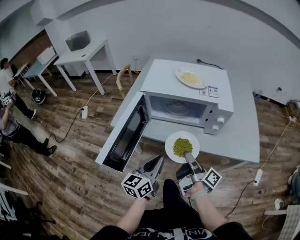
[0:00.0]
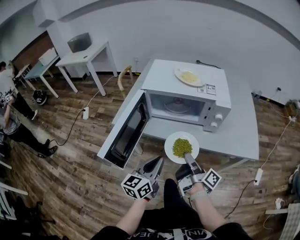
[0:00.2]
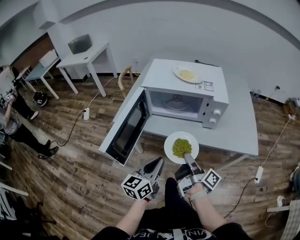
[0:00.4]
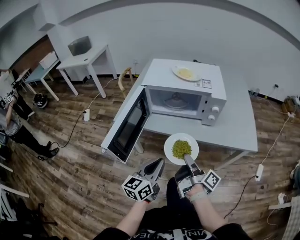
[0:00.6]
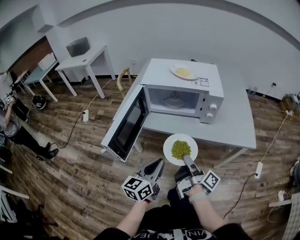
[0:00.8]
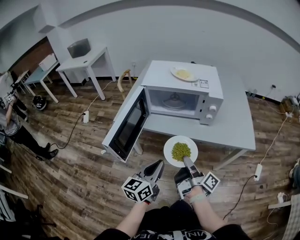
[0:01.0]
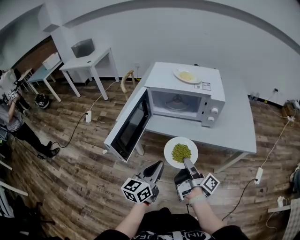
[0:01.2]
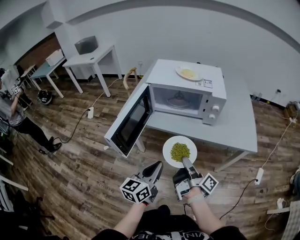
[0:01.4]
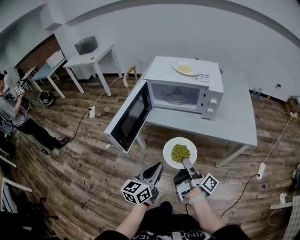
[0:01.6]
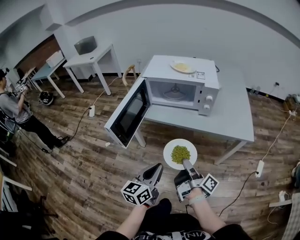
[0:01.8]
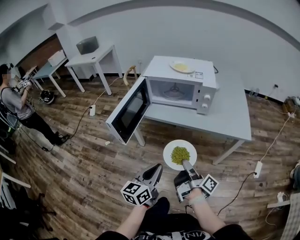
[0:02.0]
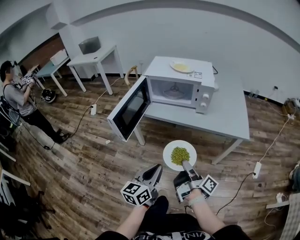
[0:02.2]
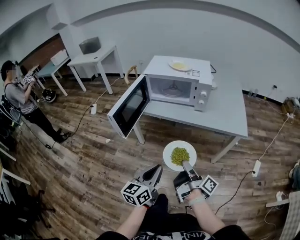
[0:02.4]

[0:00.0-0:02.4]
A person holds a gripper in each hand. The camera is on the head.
0:00.0 to 0:01.2: The grippers both shift backward by about 10 cm.
0:01.2 to 0:02.4: Both grippers travel together backward, roughly 15 cm.

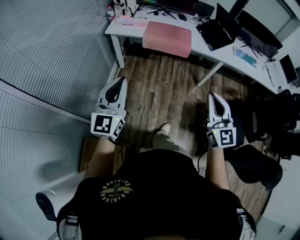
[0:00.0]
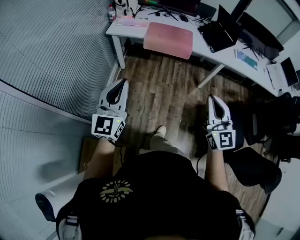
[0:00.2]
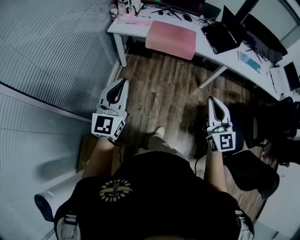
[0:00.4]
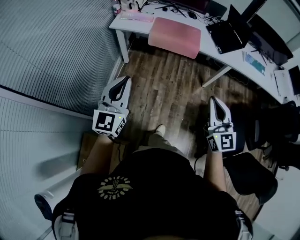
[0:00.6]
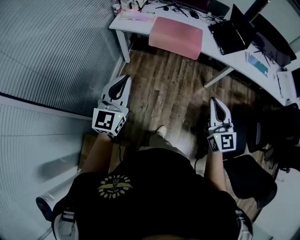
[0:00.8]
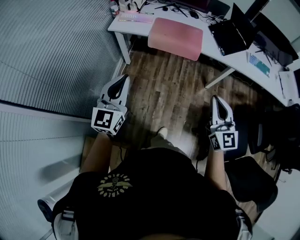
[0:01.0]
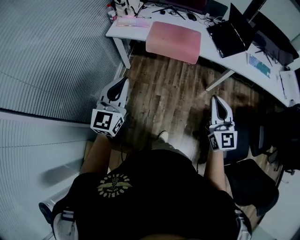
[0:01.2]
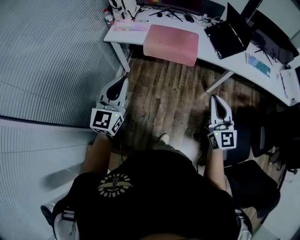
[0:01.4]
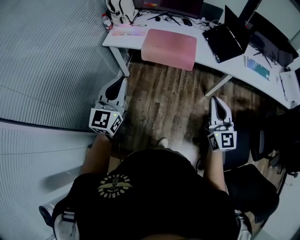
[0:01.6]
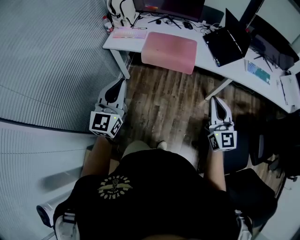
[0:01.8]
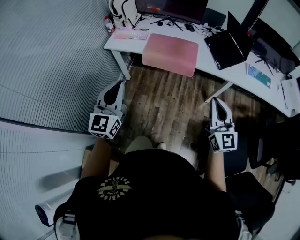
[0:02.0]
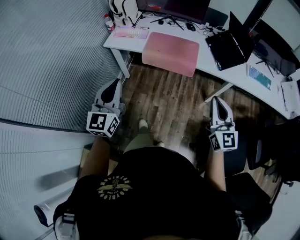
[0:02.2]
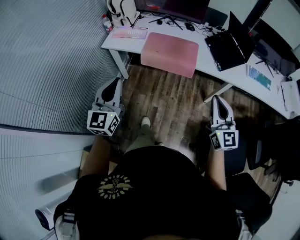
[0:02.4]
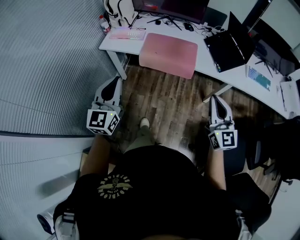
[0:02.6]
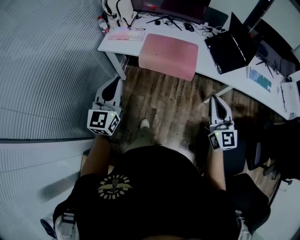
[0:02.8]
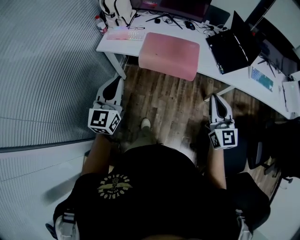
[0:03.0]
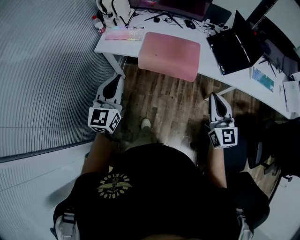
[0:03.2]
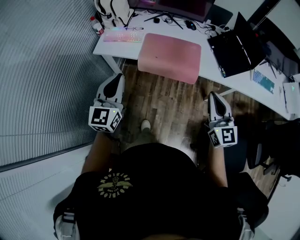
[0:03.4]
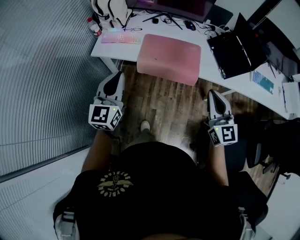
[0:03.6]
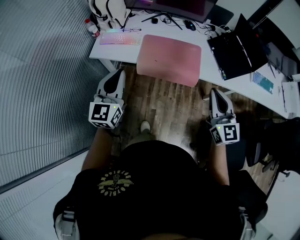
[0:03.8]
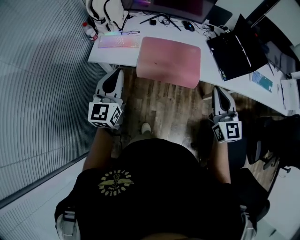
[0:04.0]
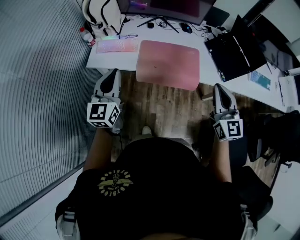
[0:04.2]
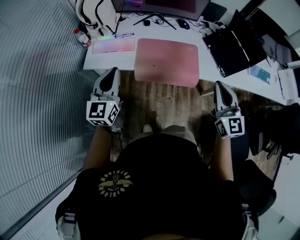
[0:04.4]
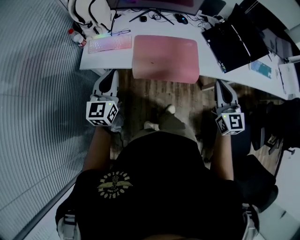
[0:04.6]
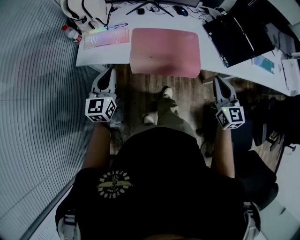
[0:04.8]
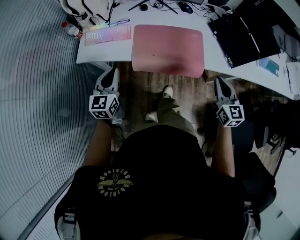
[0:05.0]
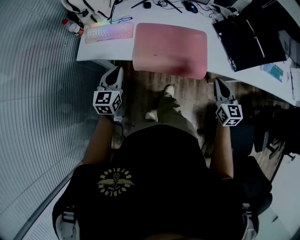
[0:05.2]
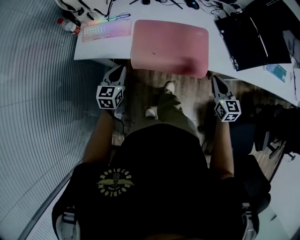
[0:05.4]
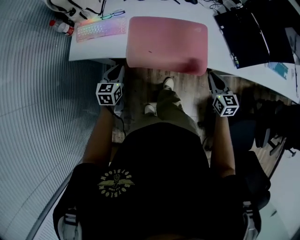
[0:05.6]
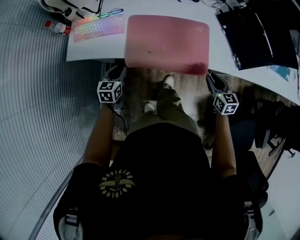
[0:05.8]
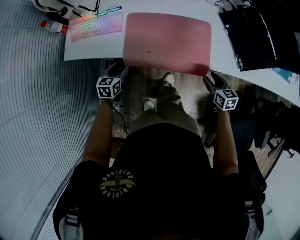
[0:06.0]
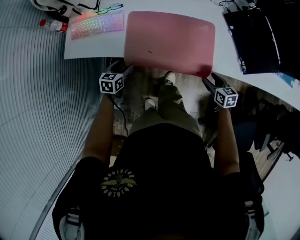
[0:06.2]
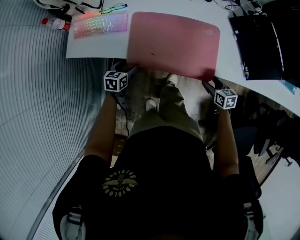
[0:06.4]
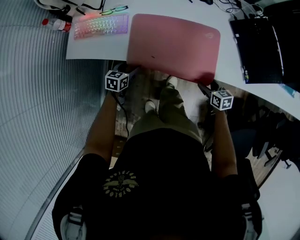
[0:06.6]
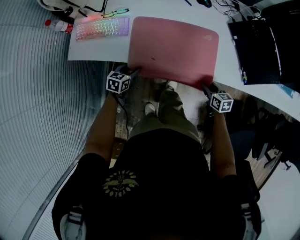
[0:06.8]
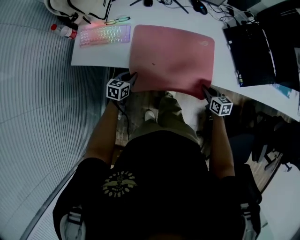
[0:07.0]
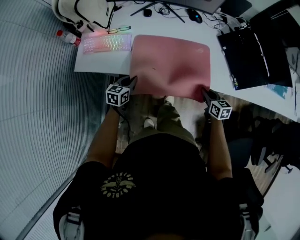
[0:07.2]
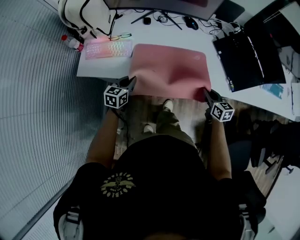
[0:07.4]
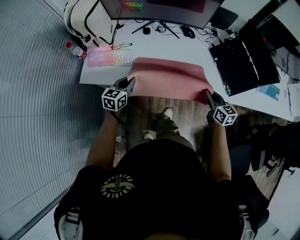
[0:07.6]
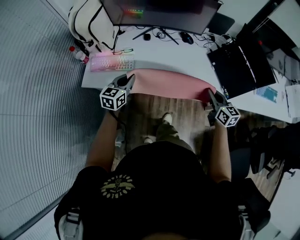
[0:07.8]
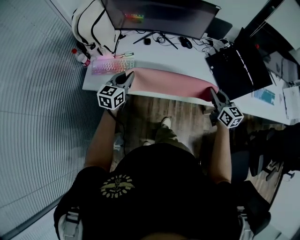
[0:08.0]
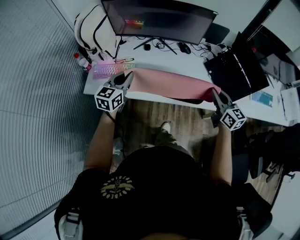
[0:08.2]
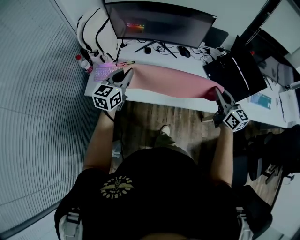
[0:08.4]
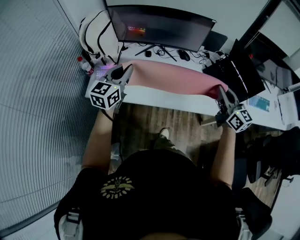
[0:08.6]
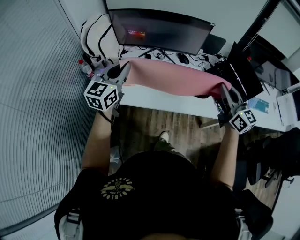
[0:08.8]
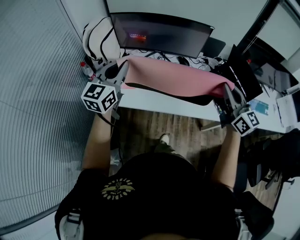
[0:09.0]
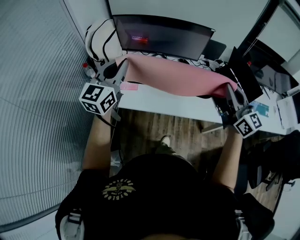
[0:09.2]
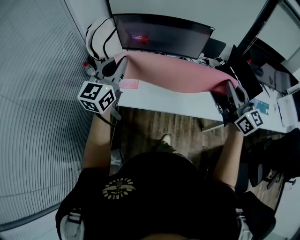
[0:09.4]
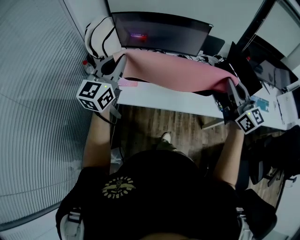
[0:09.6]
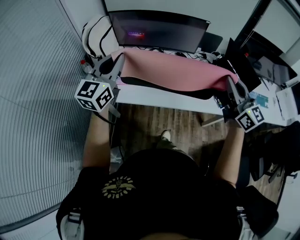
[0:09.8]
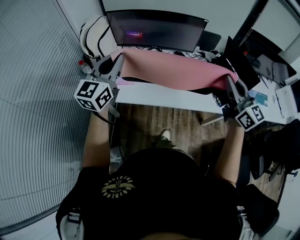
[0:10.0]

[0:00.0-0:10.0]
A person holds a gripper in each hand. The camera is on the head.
0:00.0 to 0:01.4: The right gripper travels forward and to the right by about 20 cm. The left gripper goes about 20 cm forward.
0:01.4 to 0:02.8: Both grippers move forward, some 15 cm.
0:02.8 to 0:04.2: Both grippers travel together forward, approximately 25 cm.
0:04.2 to 0:05.8: Both grippers move downward, approximately 35 cm. The left gripper tilts its fingers some 40 degrees downward. Meanwhile the right gripper points its fingers roughly 30 degrees further downward, and opens up.
0:05.8 to 0:07.2: The left gripper moves about 10 cm downward and comes back, and opens and closes again; the right gripper travels downward and back again, about 15 cm each way, and opens, then closes once more.
0:07.2 to 0:08.6: Both grippers travel together upward, approximately 40 cm. The right gripper angles its fingers upward, by approximately 40 degrees. The left gripper swivels roughly 40 degrees.
0:08.6 to 0:10.0: Both grippers move upward and backward, about 15 cm.

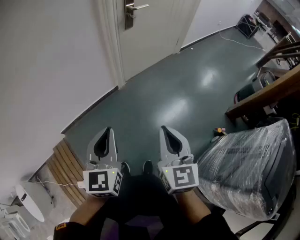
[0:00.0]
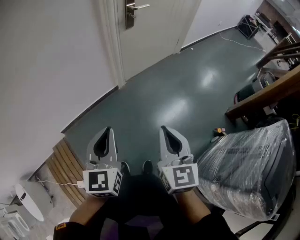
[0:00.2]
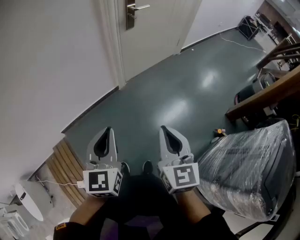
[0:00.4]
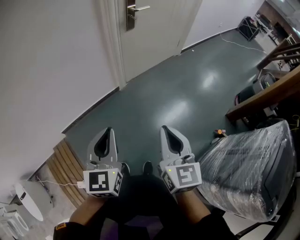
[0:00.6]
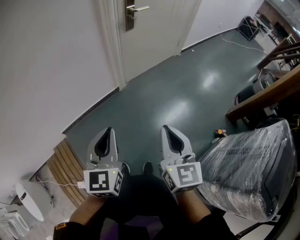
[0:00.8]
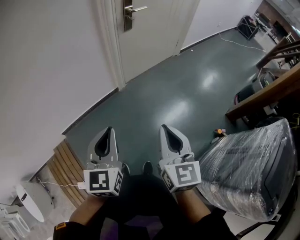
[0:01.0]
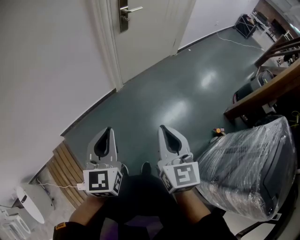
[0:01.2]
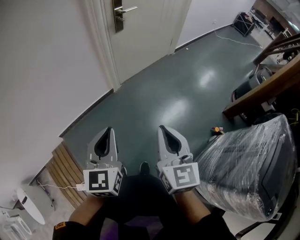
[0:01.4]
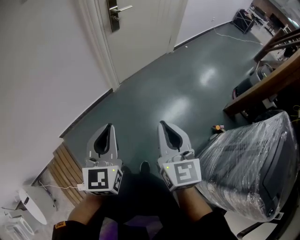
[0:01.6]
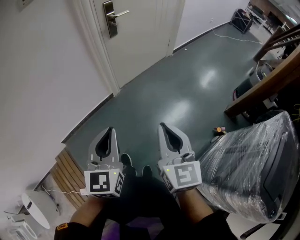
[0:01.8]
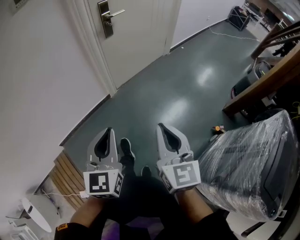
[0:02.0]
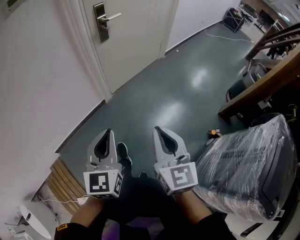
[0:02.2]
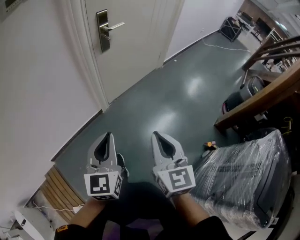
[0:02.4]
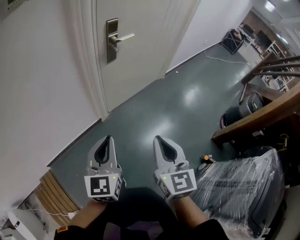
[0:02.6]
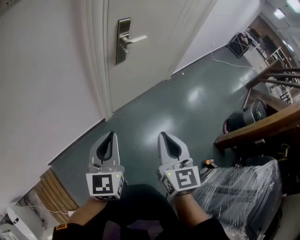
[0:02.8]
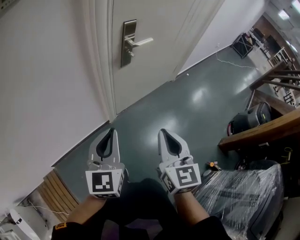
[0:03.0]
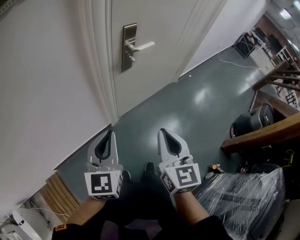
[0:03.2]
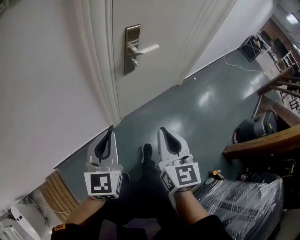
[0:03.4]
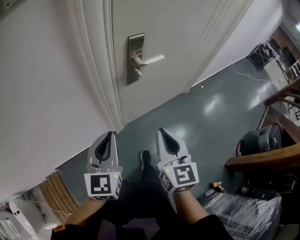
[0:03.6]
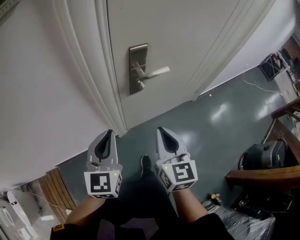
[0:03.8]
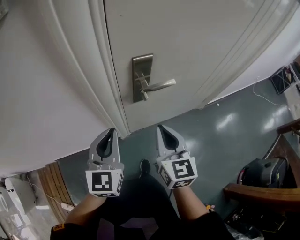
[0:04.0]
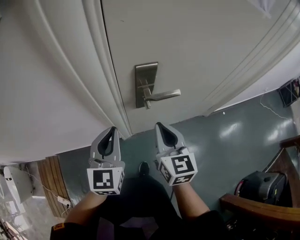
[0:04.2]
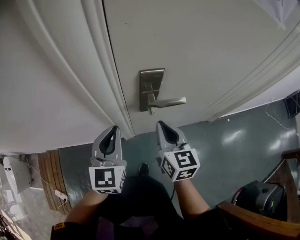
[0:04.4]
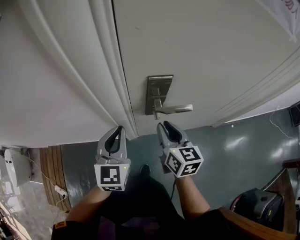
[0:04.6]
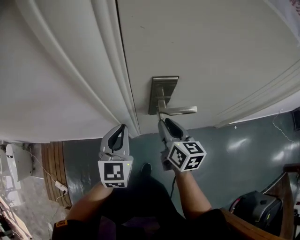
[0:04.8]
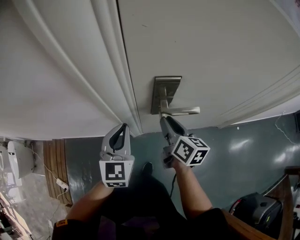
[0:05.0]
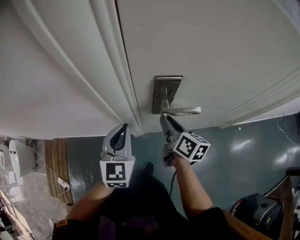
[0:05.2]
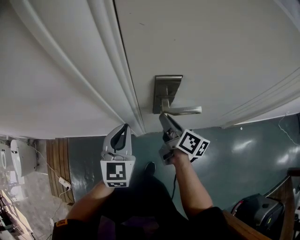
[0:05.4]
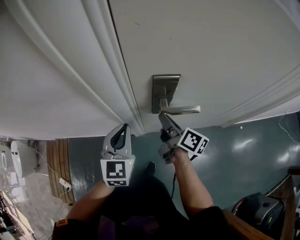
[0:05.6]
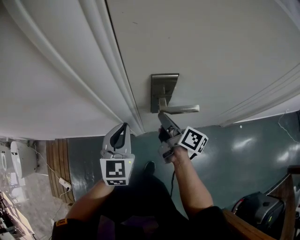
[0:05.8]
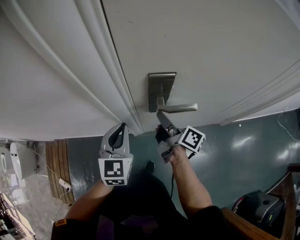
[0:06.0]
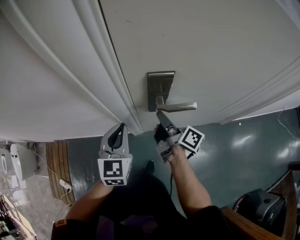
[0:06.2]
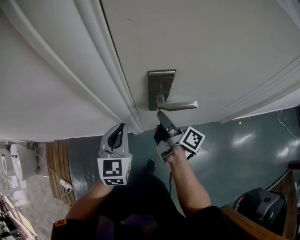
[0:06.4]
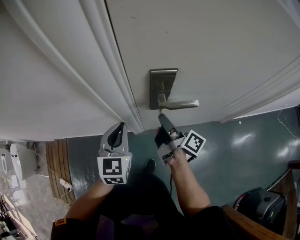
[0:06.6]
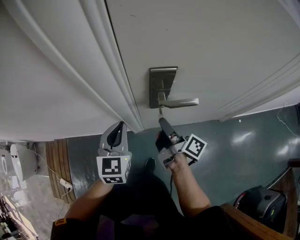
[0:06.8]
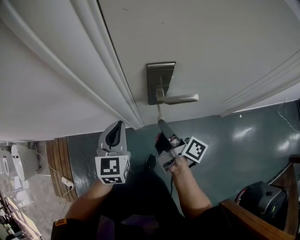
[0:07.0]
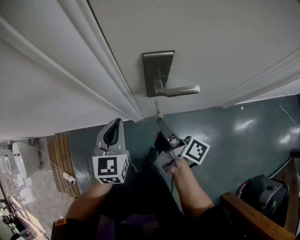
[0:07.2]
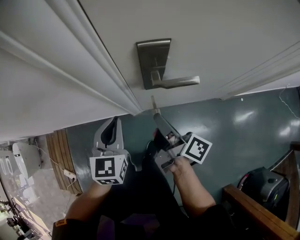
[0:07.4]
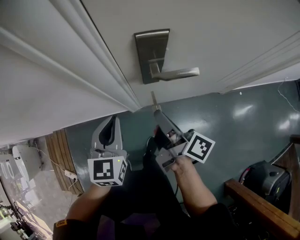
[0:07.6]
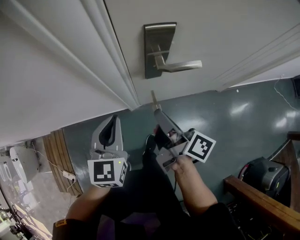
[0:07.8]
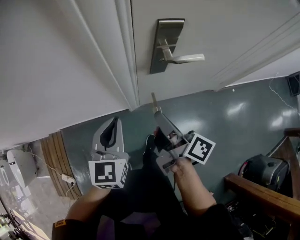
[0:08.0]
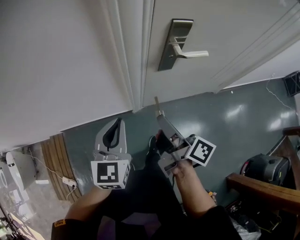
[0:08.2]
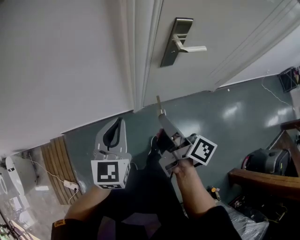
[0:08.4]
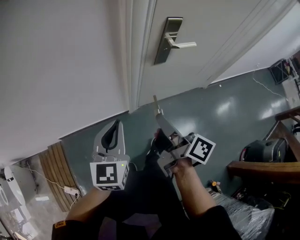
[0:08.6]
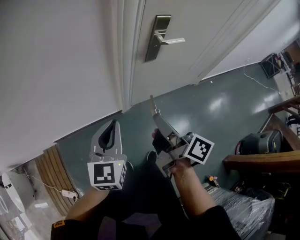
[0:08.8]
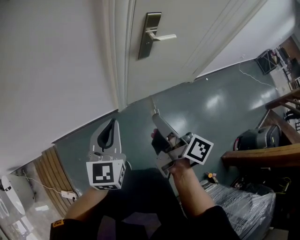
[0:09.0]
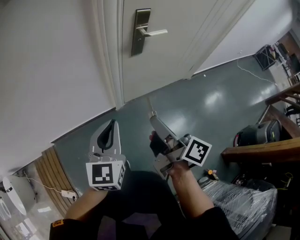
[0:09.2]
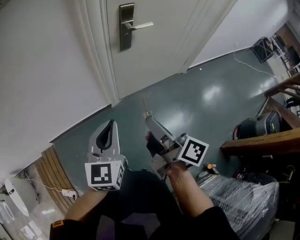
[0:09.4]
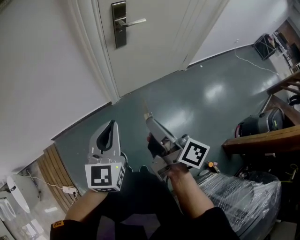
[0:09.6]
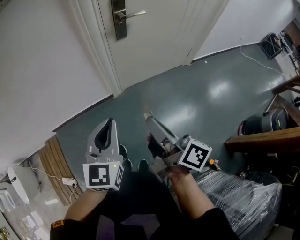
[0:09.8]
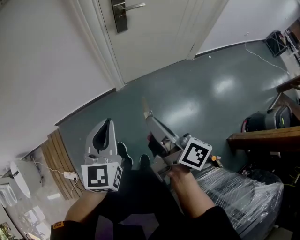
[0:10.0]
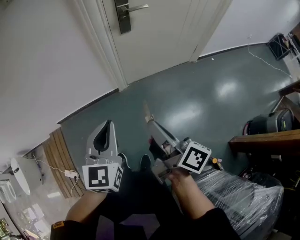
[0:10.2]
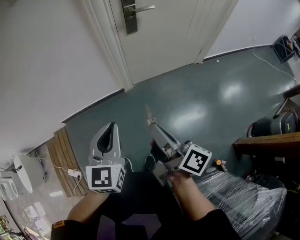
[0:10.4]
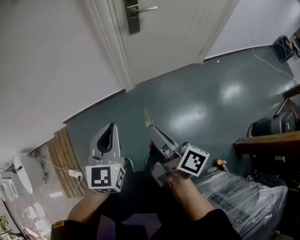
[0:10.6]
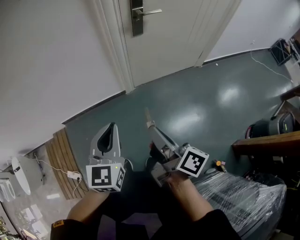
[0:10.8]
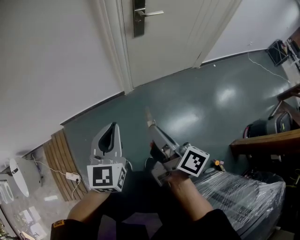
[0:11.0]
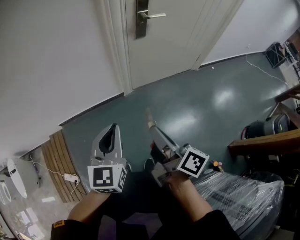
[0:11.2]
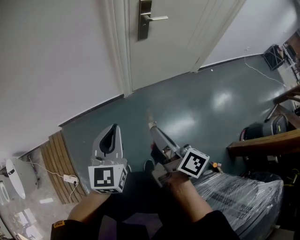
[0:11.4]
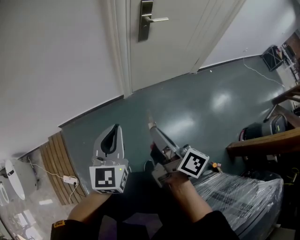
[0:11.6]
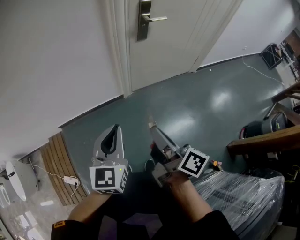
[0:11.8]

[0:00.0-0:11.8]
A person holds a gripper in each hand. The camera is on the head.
0:00.0 to 0:01.4: The right gripper ends up approximately 5 cm from where it was. Meanwhile the left gripper goes some 5 cm to the right.
0:01.4 to 0:03.0: Both grippers move forward, roughly 35 cm.
0:03.0 to 0:04.4: The left gripper shifts by some 30 cm, and rotates about 30 degrees. Meanwhile the right gripper moves roughly 40 cm, and turns by roughly 30 degrees.
0:04.4 to 0:06.0: The left gripper shifts about 5 cm downward. Meanwhile the right gripper goes approximately 10 cm forward and downward, and rolls clockwise, seen from behind, by about 60 degrees.
0:06.0 to 0:07.4: The right gripper moves backward, roughly 10 cm.
0:07.4 to 0:08.8: The left gripper is displaced backward and to the left by approximately 25 cm; the right gripper moves backward, to the left and upward, roughly 30 cm.
0:08.8 to 0:10.4: The left gripper heads backward and to the right, covering about 25 cm, while the right gripper moves backward, roughly 25 cm.
0:10.4 to 0:11.8: The grippers both shift to the left by some 10 cm.
